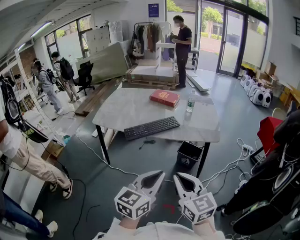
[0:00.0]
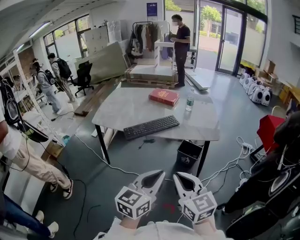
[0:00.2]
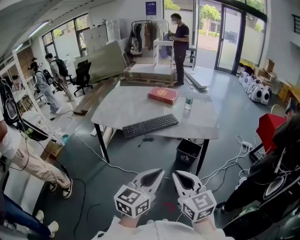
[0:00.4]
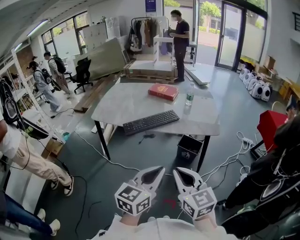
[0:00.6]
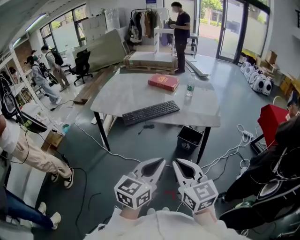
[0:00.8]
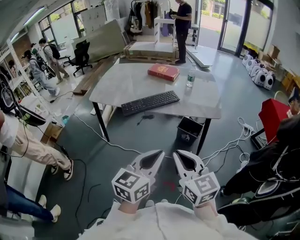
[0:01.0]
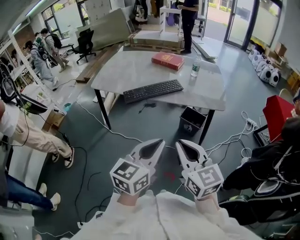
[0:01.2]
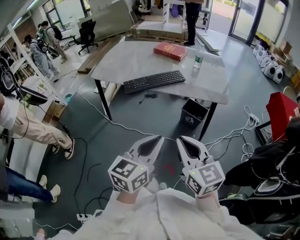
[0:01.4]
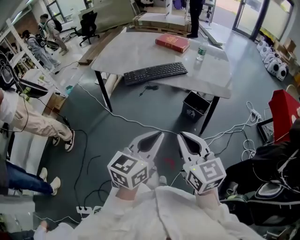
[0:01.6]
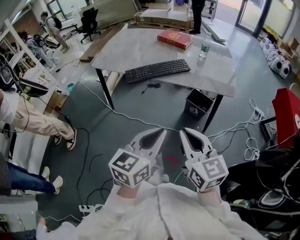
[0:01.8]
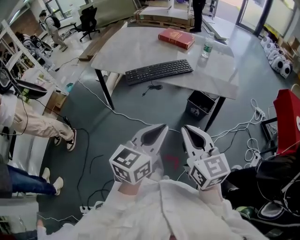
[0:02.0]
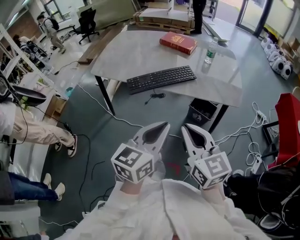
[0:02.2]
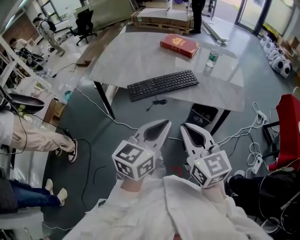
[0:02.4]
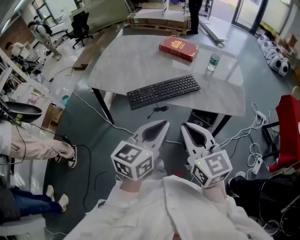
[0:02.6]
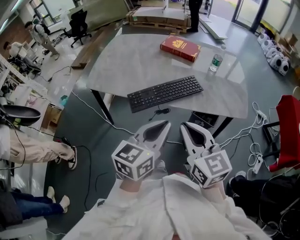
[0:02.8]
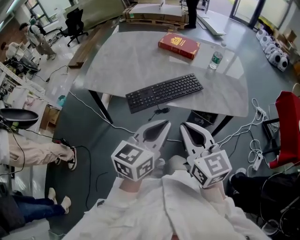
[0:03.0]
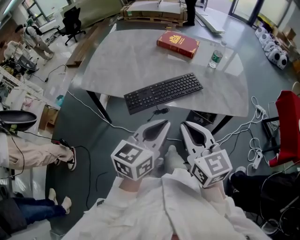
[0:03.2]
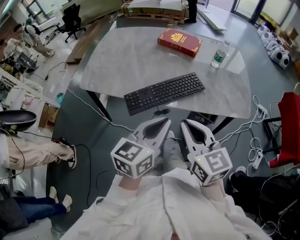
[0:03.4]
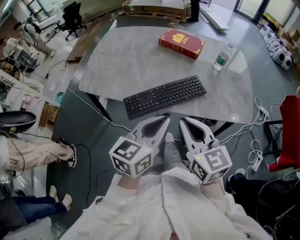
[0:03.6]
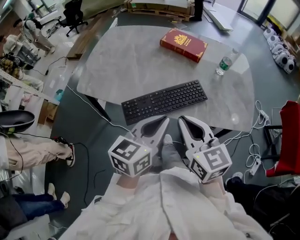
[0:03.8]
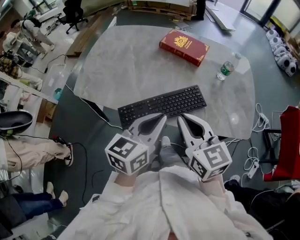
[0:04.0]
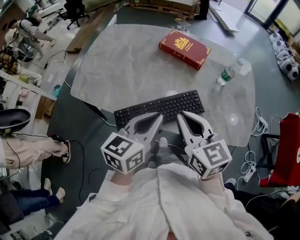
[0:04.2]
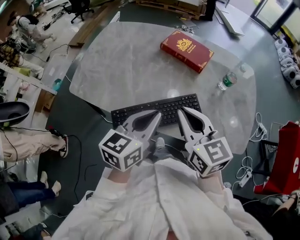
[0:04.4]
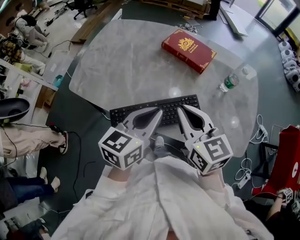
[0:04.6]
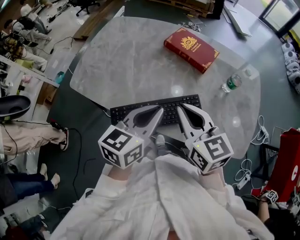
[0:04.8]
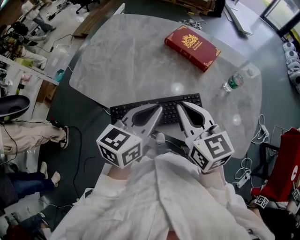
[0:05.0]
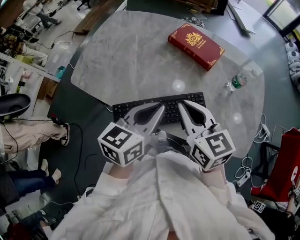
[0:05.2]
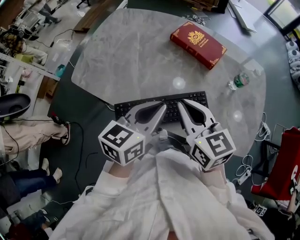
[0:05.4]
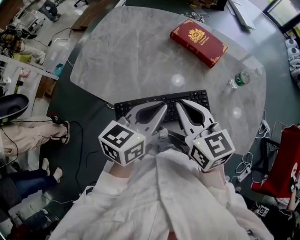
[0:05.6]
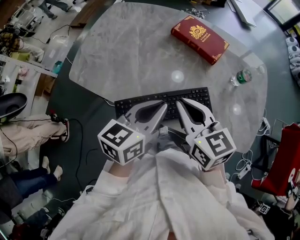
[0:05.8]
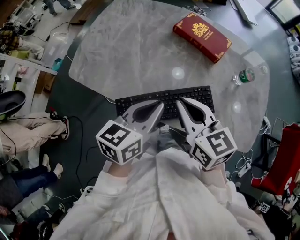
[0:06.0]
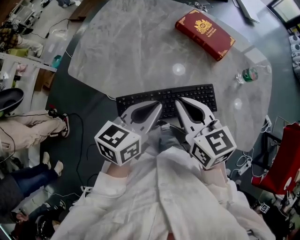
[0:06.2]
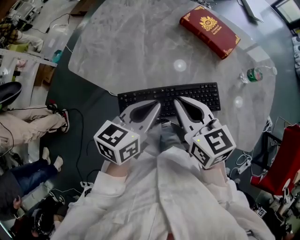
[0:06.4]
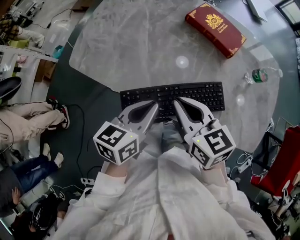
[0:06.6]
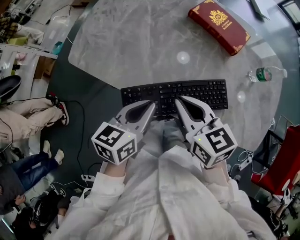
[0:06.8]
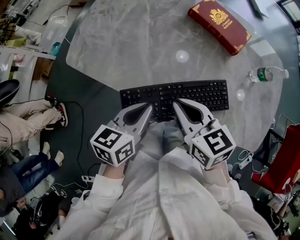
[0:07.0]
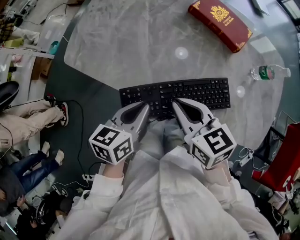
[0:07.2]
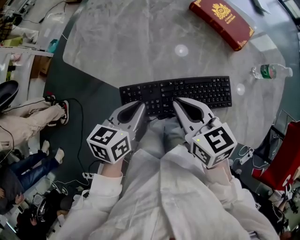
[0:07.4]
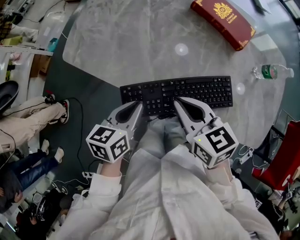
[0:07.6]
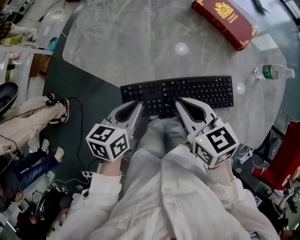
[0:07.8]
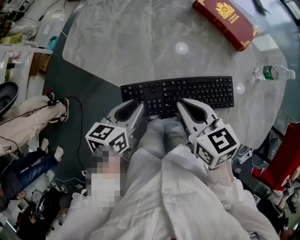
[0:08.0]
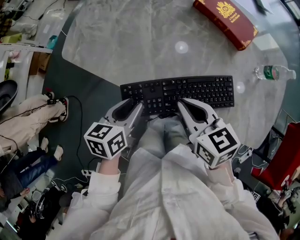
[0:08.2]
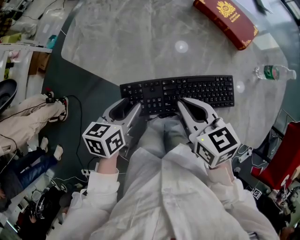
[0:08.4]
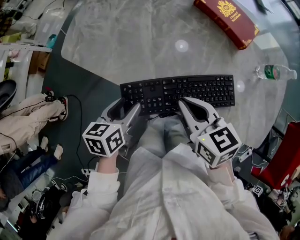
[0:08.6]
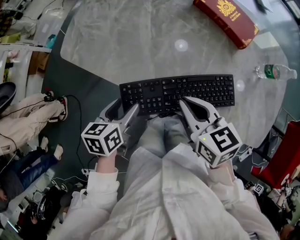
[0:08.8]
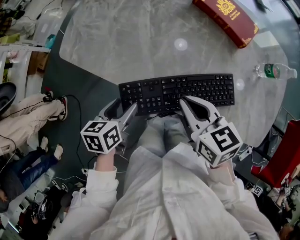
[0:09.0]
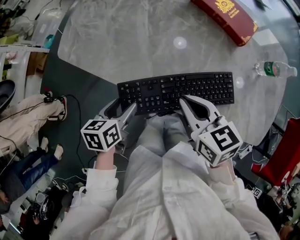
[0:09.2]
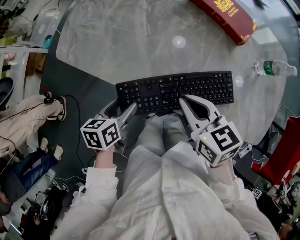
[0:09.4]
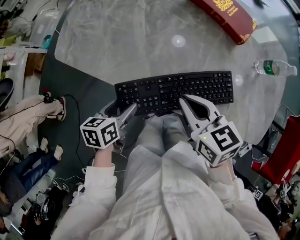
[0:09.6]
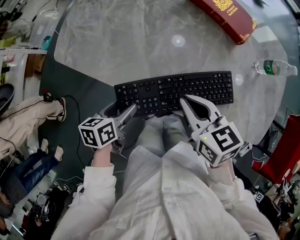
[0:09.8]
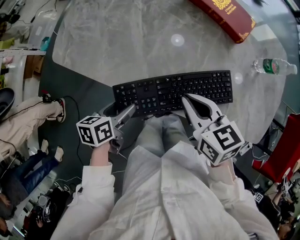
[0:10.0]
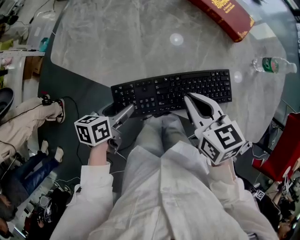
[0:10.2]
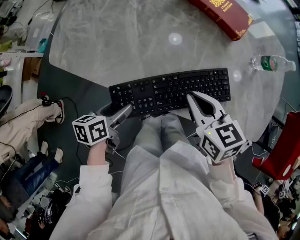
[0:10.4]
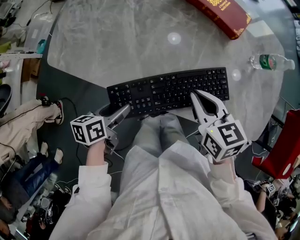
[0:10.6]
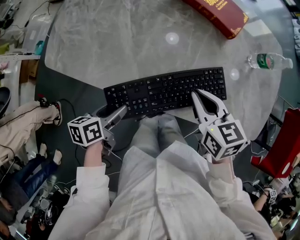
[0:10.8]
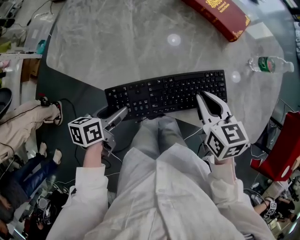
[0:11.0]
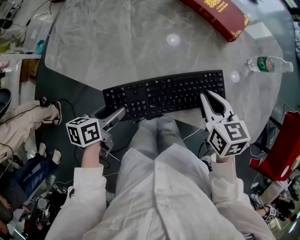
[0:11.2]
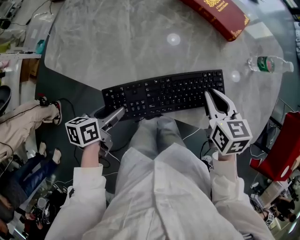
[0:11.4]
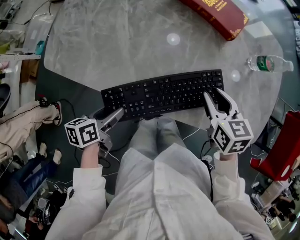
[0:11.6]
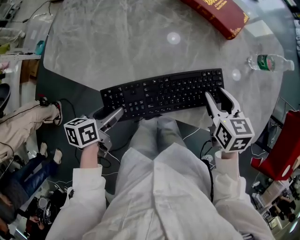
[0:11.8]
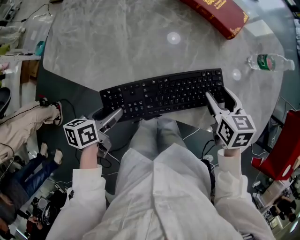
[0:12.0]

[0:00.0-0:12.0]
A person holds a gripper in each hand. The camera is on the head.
0.0 to 1.6 s: The left gripper moves downward, some 5 cm. The right gripper shifts by roughly 5 cm.
1.6 to 3.0 s: The right gripper travels forward and to the left by approximately 30 cm; the left gripper moves forward, roughly 25 cm.
3.0 to 4.4 s: The grippers both shift forward by roughly 25 cm.
4.4 to 6.0 s: The right gripper changes place by roughly 5 cm, while the left gripper moves approximately 5 cm.
6.0 to 7.6 s: The right gripper shifts roughly 10 cm downward and to the left. The left gripper is displaced downward and to the left by roughly 20 cm, and changes its angle by approximately 20 degrees.
7.6 to 9.0 s: The left gripper travels to the left and downward by some 10 cm, and opens.
9.0 to 10.4 s: The right gripper moves to the right, roughly 5 cm.
10.4 to 12.0 s: The right gripper travels to the right and downward by some 15 cm, and opens.

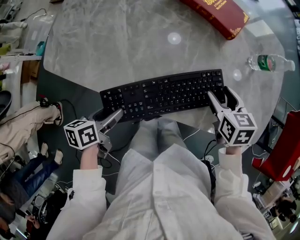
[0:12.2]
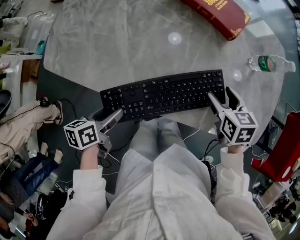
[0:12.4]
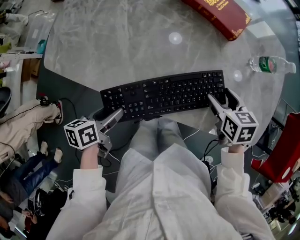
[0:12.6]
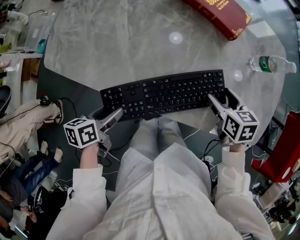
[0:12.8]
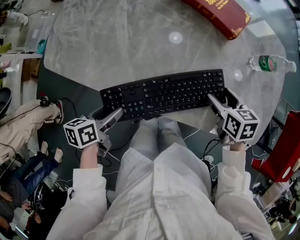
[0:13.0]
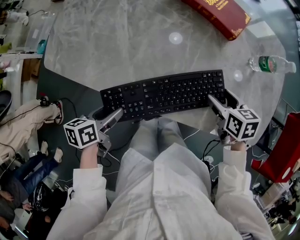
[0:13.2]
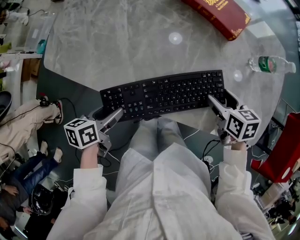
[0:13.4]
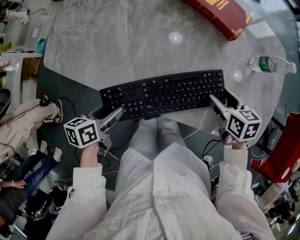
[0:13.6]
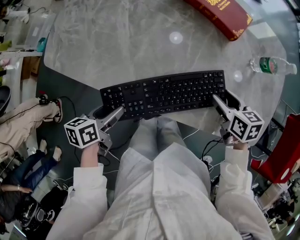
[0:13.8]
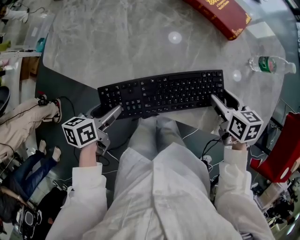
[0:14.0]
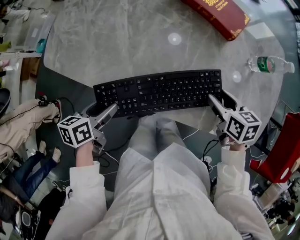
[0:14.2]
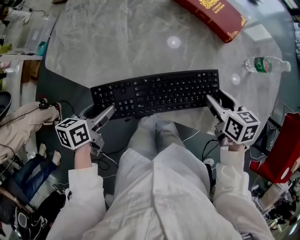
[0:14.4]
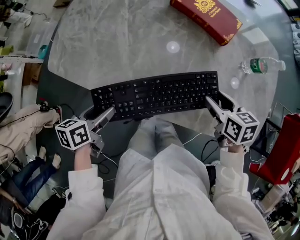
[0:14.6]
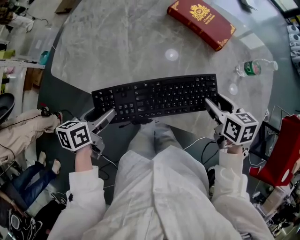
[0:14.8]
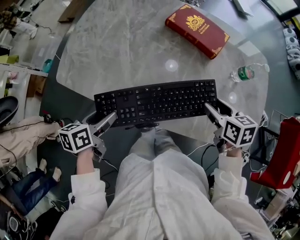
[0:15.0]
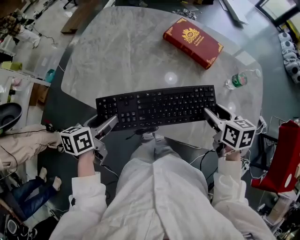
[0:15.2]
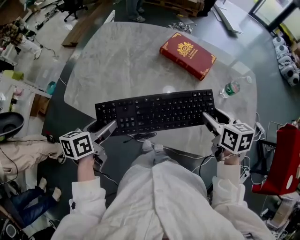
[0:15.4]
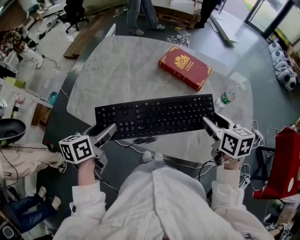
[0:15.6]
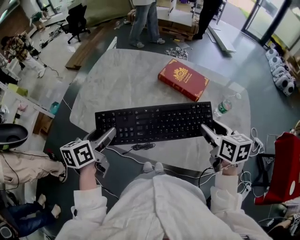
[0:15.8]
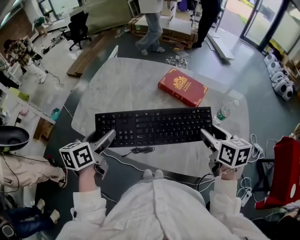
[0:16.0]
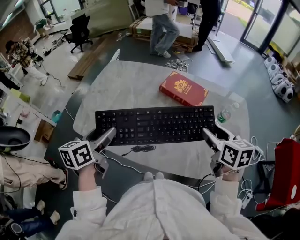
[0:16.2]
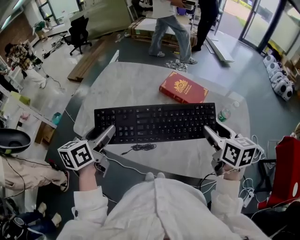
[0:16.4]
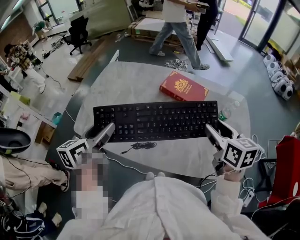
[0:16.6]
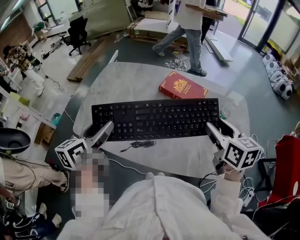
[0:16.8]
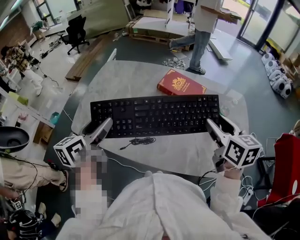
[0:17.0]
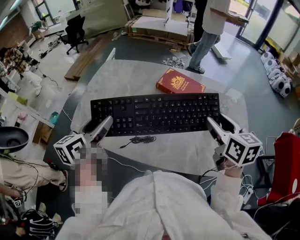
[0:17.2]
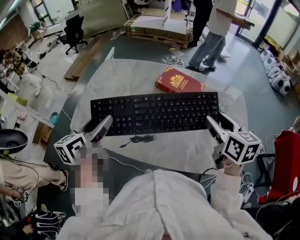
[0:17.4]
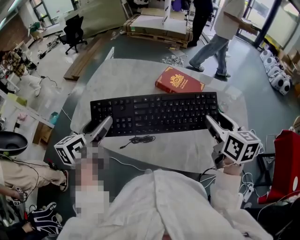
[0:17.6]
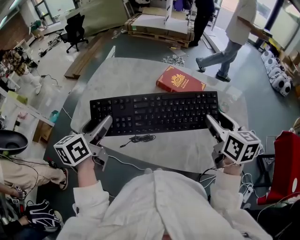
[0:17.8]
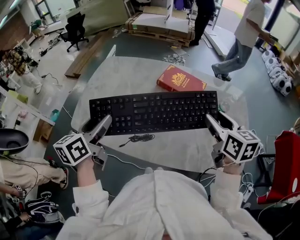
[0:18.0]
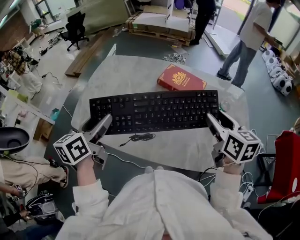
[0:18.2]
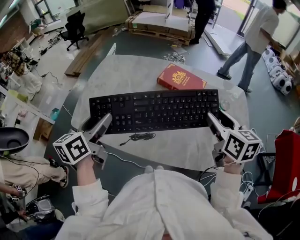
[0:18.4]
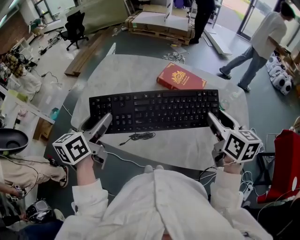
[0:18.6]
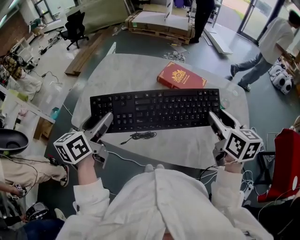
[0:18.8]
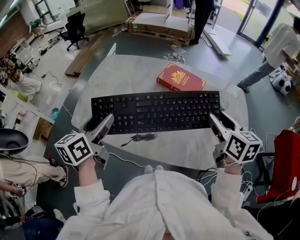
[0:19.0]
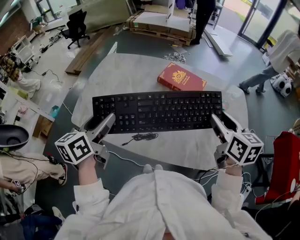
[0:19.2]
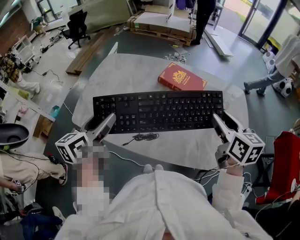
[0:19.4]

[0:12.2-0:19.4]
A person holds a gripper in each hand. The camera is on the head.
12.2 to 15.0 s: The grippers make only small movements.
15.0 to 16.6 s: The right gripper swivels roughly 30 degrees. The left gripper changes its angle by roughly 30 degrees.
16.6 to 19.4 s: The grippers make only small movements.

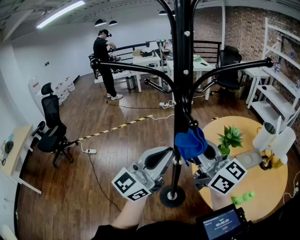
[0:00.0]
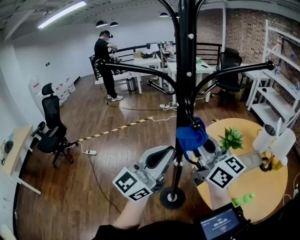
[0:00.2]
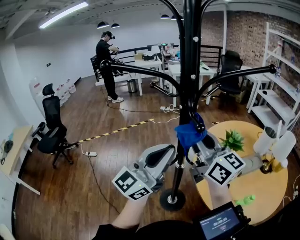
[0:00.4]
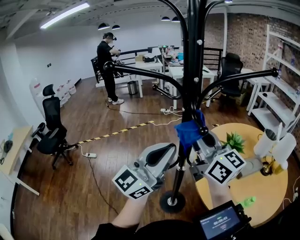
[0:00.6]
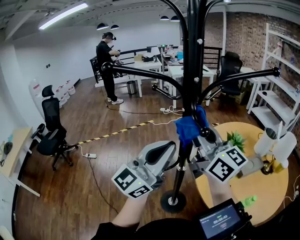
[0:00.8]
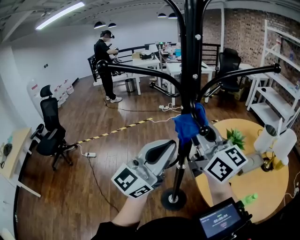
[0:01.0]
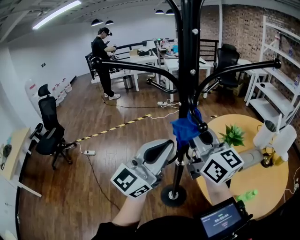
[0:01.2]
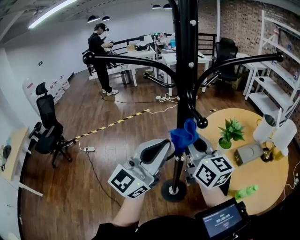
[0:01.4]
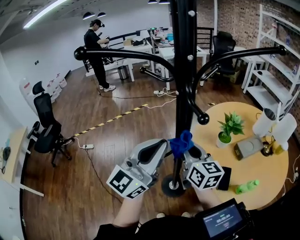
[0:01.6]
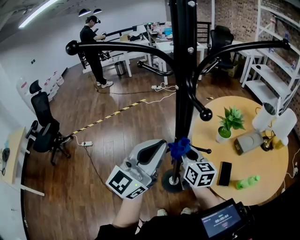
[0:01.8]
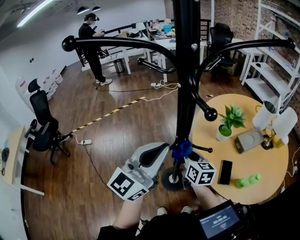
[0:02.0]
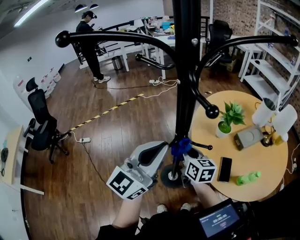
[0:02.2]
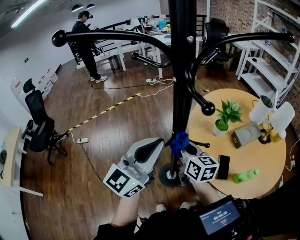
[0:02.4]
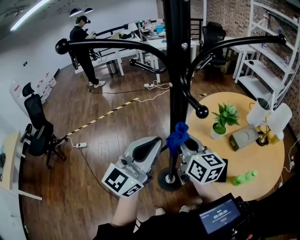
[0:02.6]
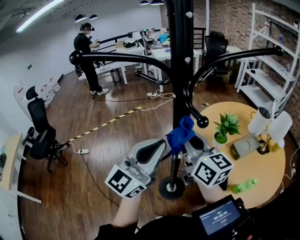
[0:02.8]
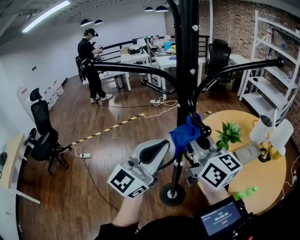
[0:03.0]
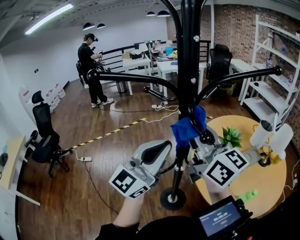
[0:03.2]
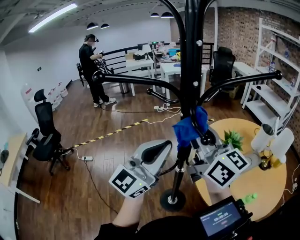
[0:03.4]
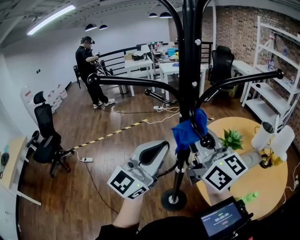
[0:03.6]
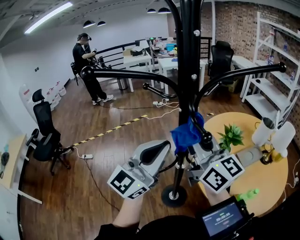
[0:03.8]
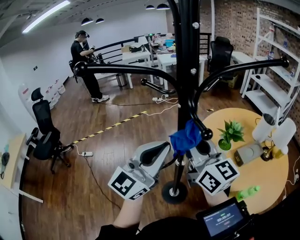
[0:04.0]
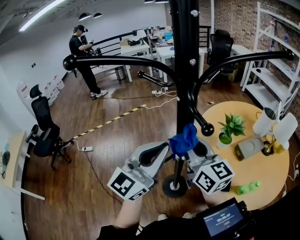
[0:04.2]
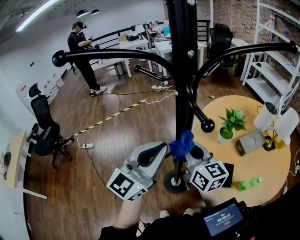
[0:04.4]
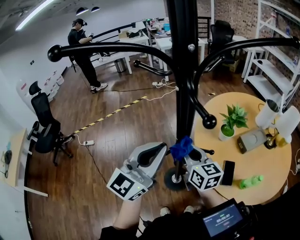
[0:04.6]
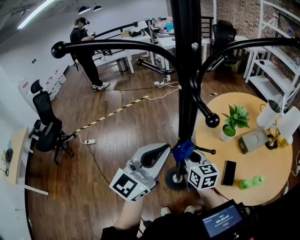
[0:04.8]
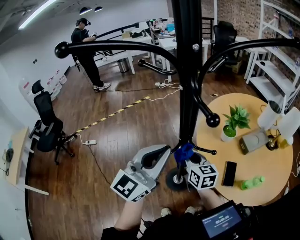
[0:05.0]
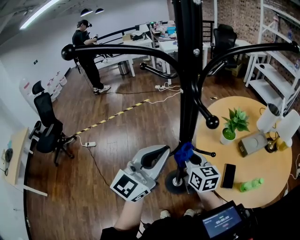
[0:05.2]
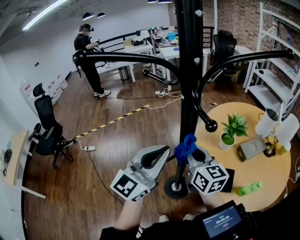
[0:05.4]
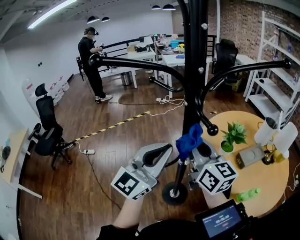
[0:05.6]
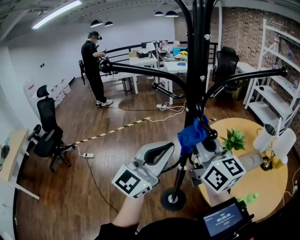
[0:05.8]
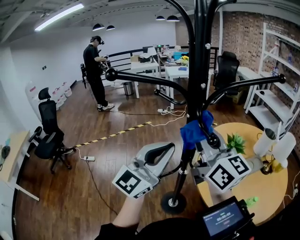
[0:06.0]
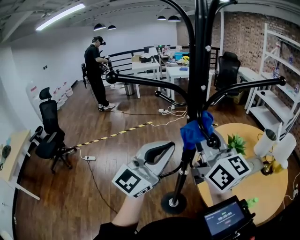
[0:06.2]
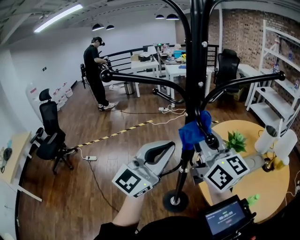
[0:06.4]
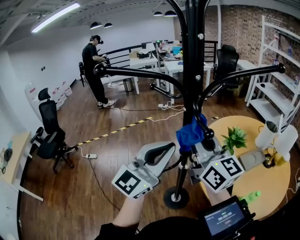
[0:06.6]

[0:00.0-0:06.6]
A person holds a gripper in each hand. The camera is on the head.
0.0 to 1.6 s: The right gripper goes approximately 15 cm downward, and rotates some 30 degrees.
1.6 to 3.2 s: The right gripper moves upward, roughly 20 cm, and changes its angle by roughly 20 degrees.
3.2 to 5.0 s: The right gripper is displaced downward by roughly 35 cm, and tips its fingers downward by some 40 degrees. Meanwhile the left gripper heads downward, covering about 10 cm.
5.0 to 6.6 s: The right gripper goes roughly 30 cm upward, and angles its fingers upward, by about 30 degrees. Meanwhile the left gripper goes some 5 cm upward.
